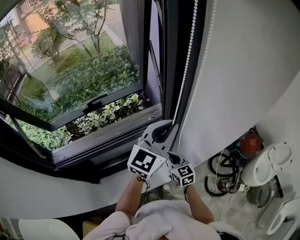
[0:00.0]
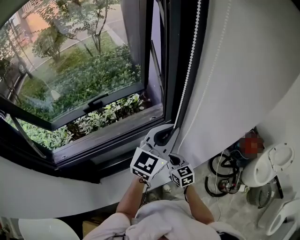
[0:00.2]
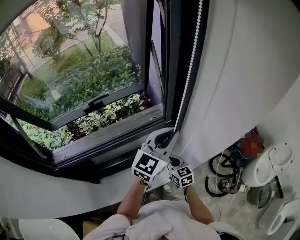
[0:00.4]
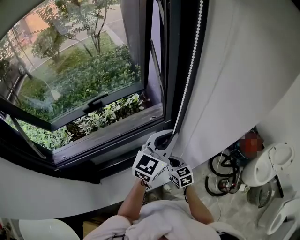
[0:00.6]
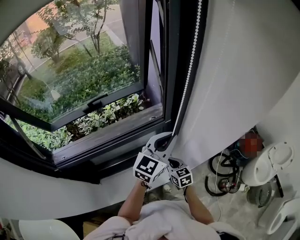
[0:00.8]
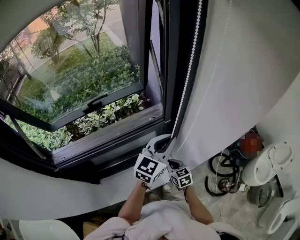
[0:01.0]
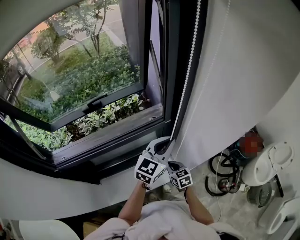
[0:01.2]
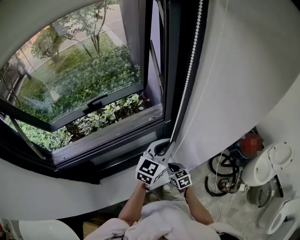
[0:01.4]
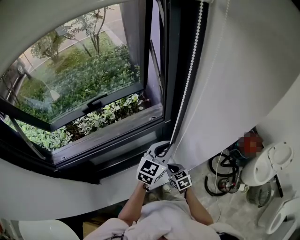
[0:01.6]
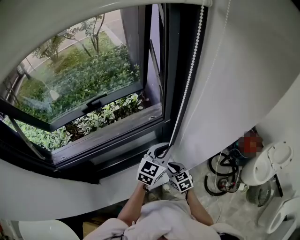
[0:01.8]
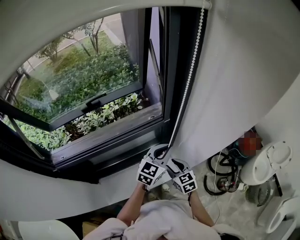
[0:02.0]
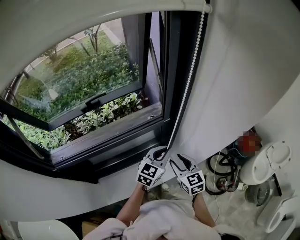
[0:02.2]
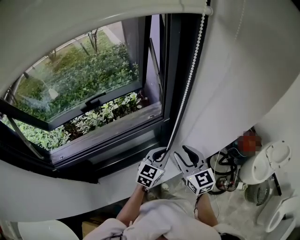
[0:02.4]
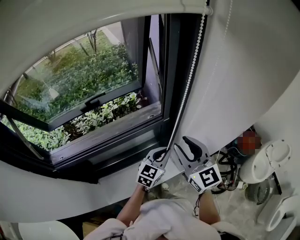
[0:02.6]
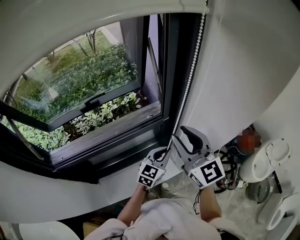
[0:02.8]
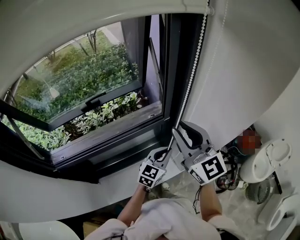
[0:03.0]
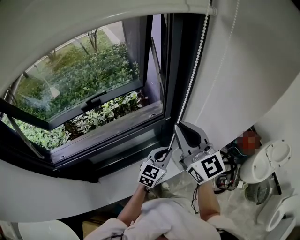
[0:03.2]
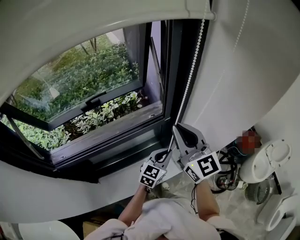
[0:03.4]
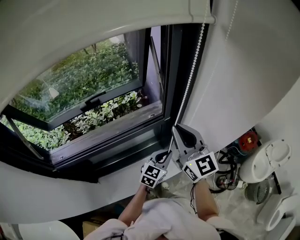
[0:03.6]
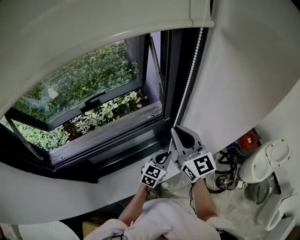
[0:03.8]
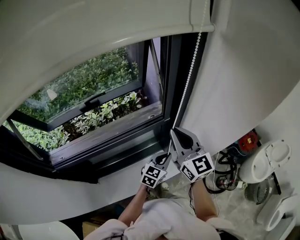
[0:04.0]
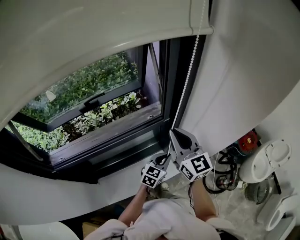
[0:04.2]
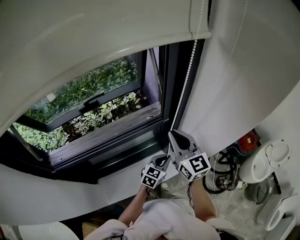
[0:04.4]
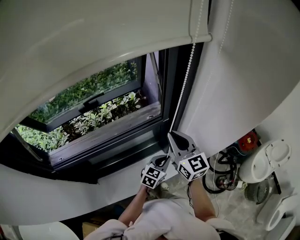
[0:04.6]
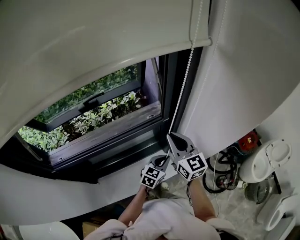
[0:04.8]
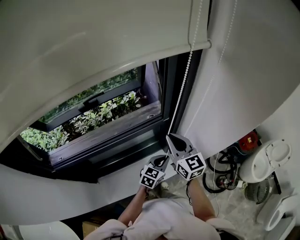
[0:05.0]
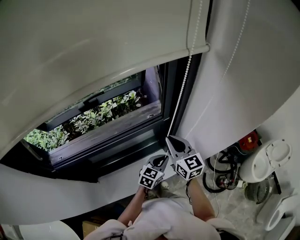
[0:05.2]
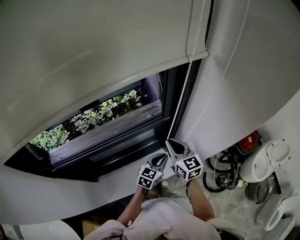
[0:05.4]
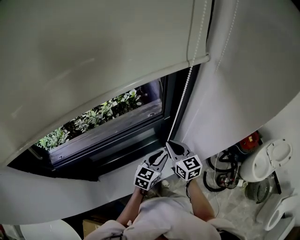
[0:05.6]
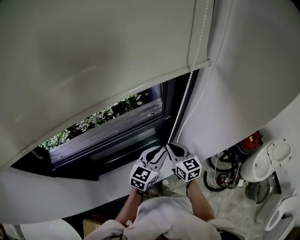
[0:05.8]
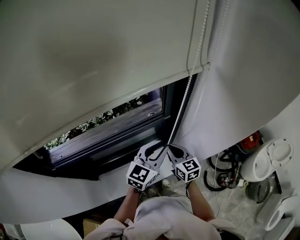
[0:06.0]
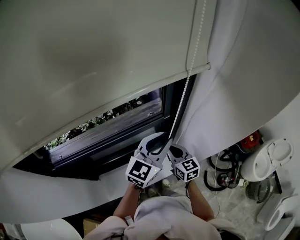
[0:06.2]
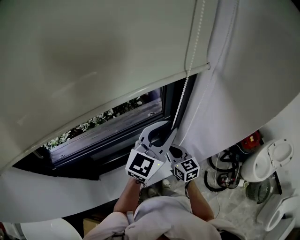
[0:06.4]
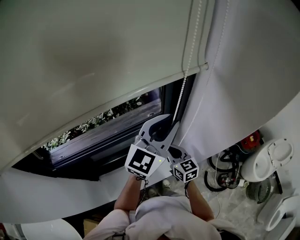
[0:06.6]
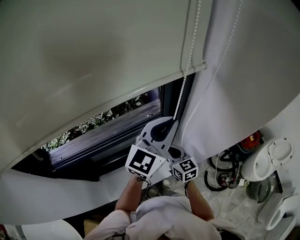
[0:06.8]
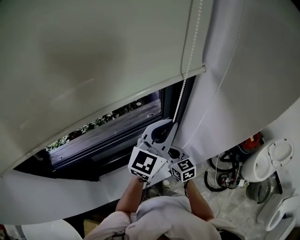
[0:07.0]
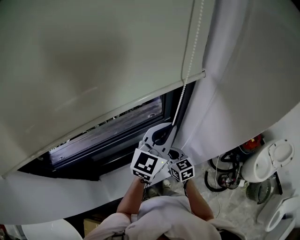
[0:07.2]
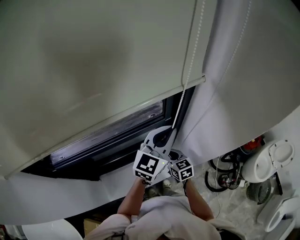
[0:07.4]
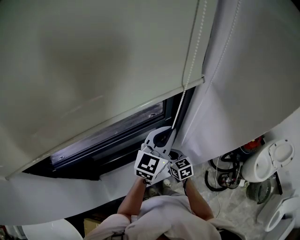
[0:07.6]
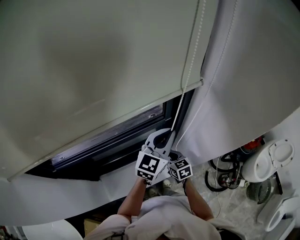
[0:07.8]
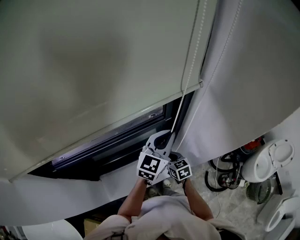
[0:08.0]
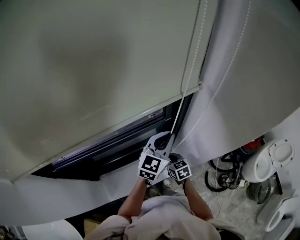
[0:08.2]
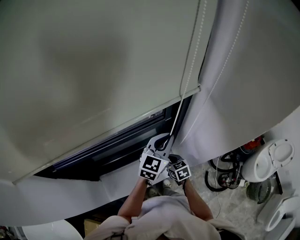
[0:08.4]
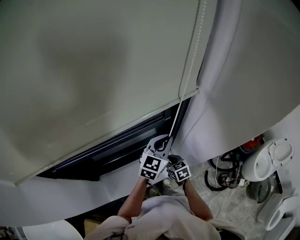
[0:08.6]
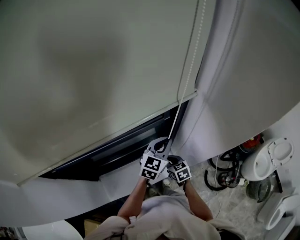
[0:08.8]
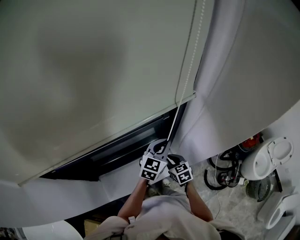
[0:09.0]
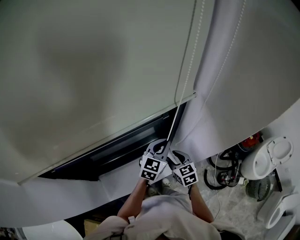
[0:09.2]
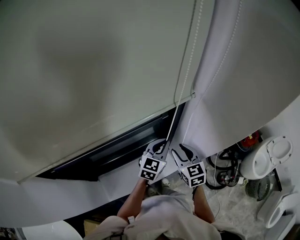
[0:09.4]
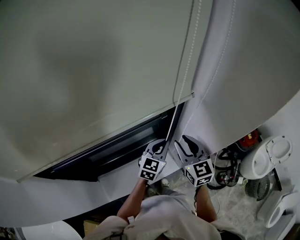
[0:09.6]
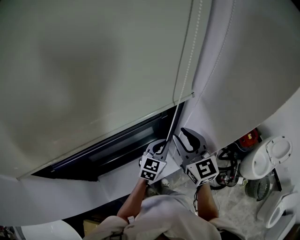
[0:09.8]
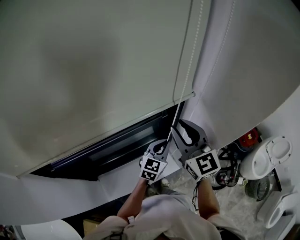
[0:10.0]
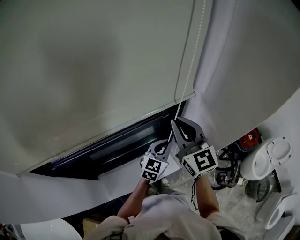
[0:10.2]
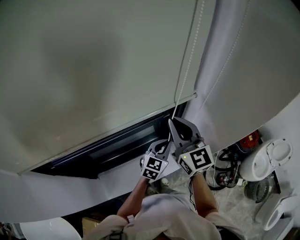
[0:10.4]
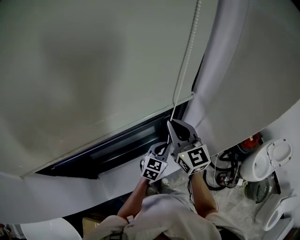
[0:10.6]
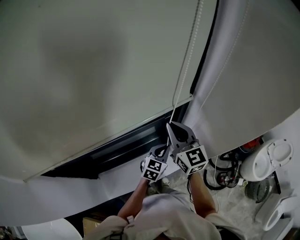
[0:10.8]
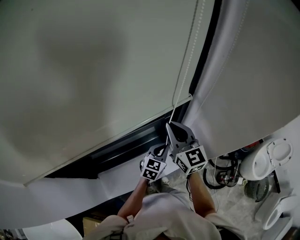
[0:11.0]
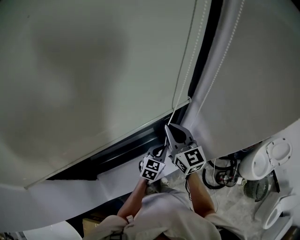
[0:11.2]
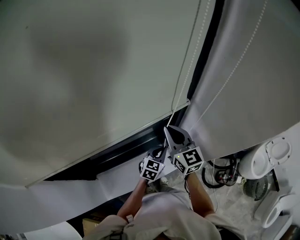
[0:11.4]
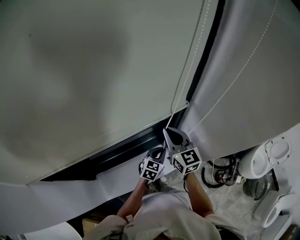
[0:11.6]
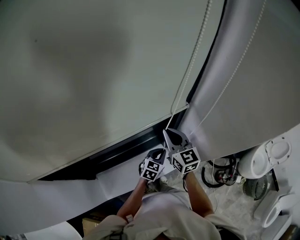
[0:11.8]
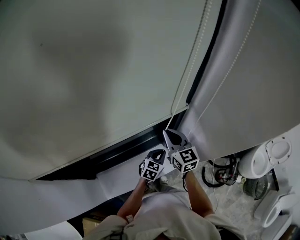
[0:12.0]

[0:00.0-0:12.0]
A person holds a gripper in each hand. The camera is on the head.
0.0 to 1.6 s: The two grippers go roughly 15 cm downward. The right gripper swivels approximately 20 degrees.
1.6 to 3.0 s: The left gripper is displaced downward by about 5 cm. Meanwhile the right gripper heads upward, covering approximately 40 cm, points its fingers roughly 50 degrees further upward, and opens.
3.0 to 4.4 s: The two grippers go some 10 cm downward. The right gripper closes its fingers.
4.4 to 6.0 s: The right gripper travels downward by approximately 15 cm, and turns by approximately 20 degrees, while the left gripper heads upward, covering about 15 cm.
6.0 to 7.6 s: The right gripper heads downward, covering roughly 10 cm. The left gripper is displaced upward and forward by approximately 10 cm.
7.6 to 9.0 s: The right gripper changes place by approximately 5 cm, while the left gripper shifts roughly 15 cm downward.
9.0 to 10.4 s: The right gripper travels upward by some 35 cm, tips its fingers upward by some 40 degrees, and opens, then closes again.
10.4 to 12.0 s: Both grippers move downward, approximately 15 cm.

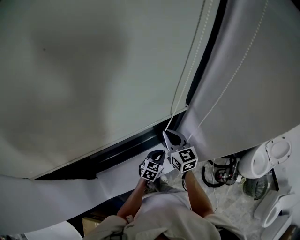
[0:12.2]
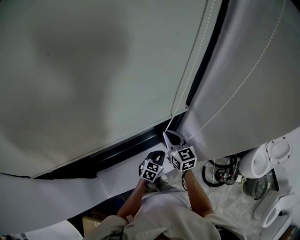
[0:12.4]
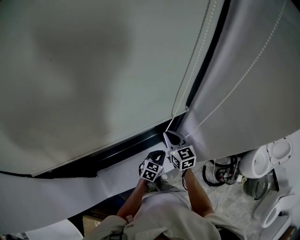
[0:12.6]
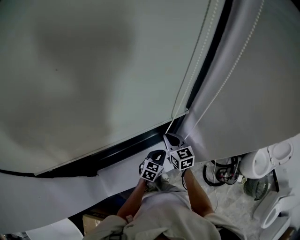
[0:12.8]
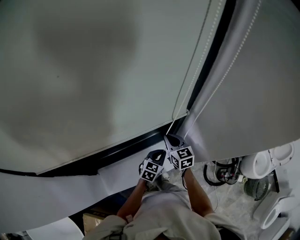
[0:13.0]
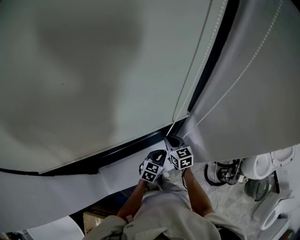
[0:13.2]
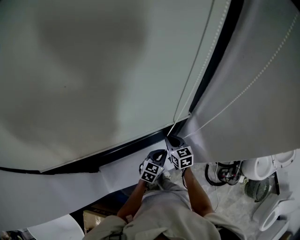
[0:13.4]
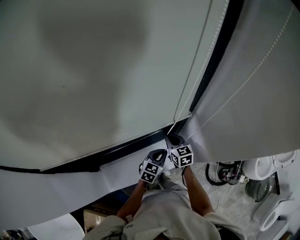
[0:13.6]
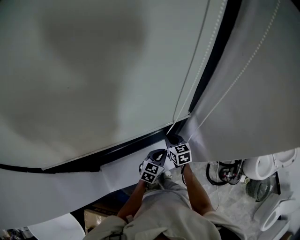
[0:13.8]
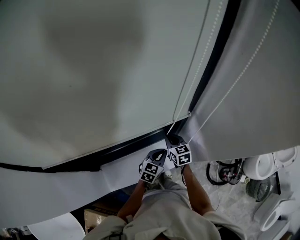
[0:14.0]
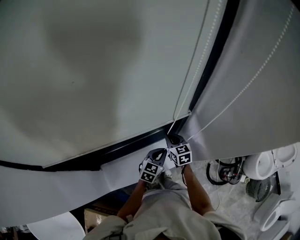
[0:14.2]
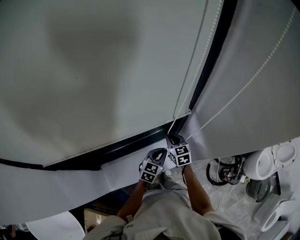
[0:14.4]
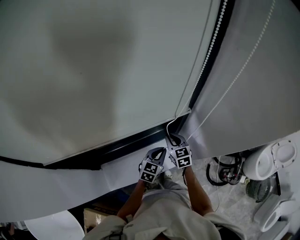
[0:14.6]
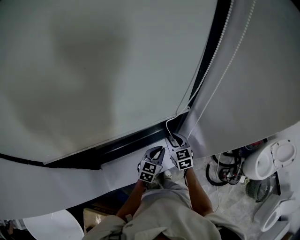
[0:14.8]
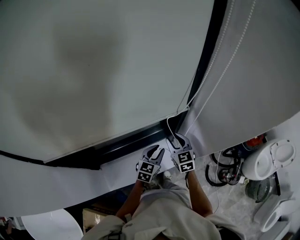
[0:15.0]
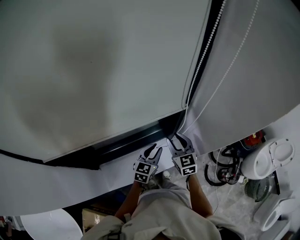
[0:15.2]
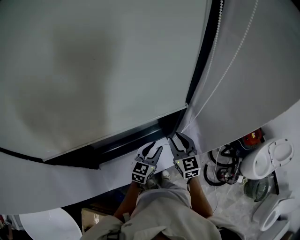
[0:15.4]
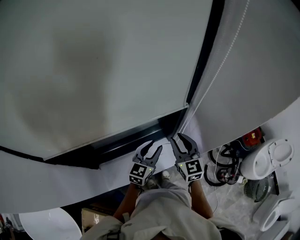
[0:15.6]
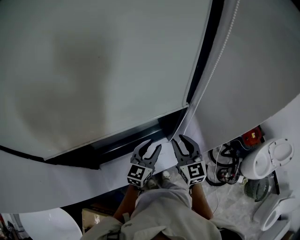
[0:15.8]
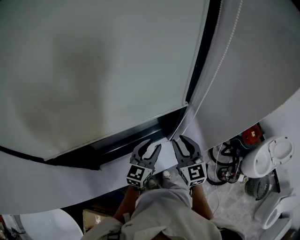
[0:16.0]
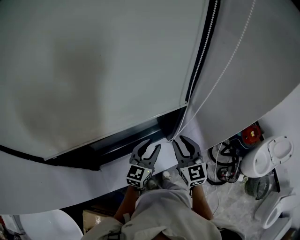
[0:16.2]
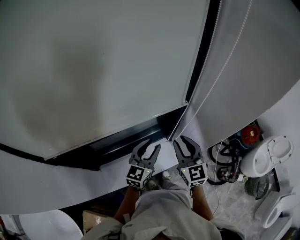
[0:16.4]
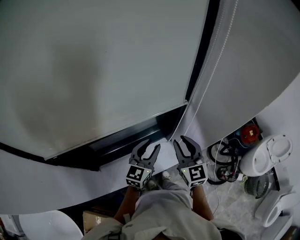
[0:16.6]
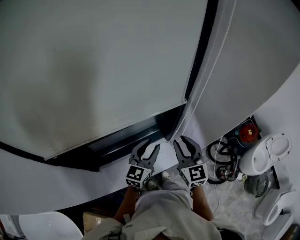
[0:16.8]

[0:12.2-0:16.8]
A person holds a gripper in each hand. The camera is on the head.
12.2 to 13.8 s: The right gripper shifts roughly 15 cm downward.
13.8 to 15.2 s: The left gripper is displaced upward by some 5 cm, and opens up. The right gripper moves upward and backward, approximately 10 cm, and opens.
15.2 to 16.8 s: The left gripper travels upward by approximately 10 cm. The right gripper heads upward and backward, covering approximately 15 cm.

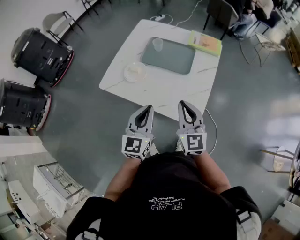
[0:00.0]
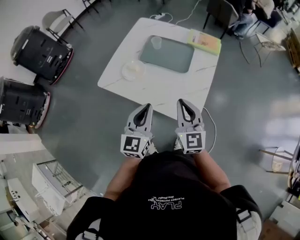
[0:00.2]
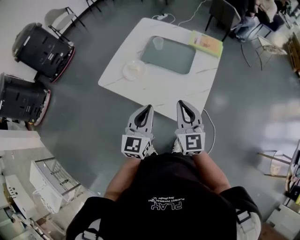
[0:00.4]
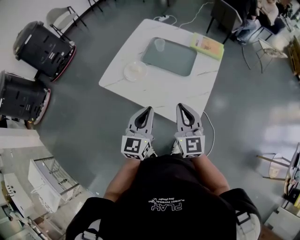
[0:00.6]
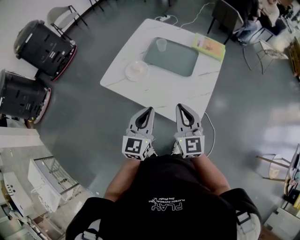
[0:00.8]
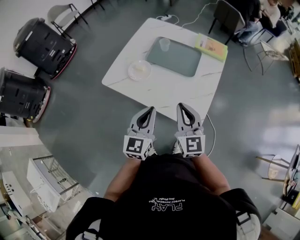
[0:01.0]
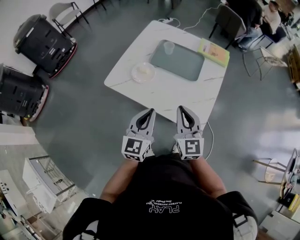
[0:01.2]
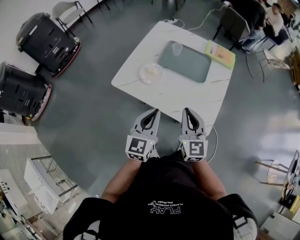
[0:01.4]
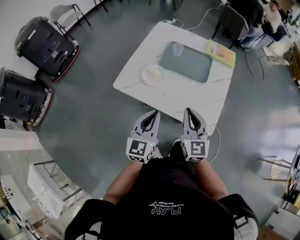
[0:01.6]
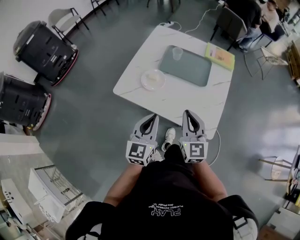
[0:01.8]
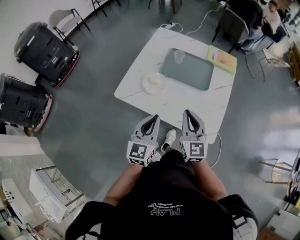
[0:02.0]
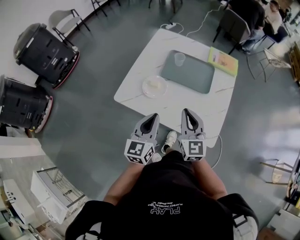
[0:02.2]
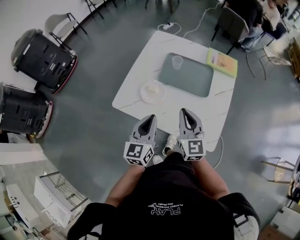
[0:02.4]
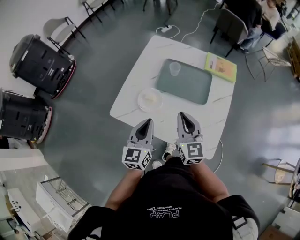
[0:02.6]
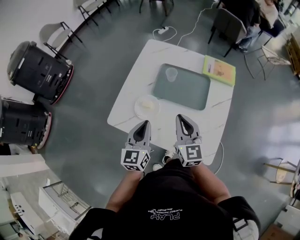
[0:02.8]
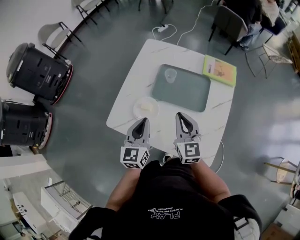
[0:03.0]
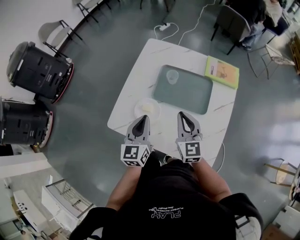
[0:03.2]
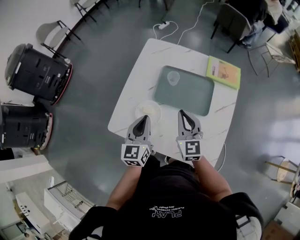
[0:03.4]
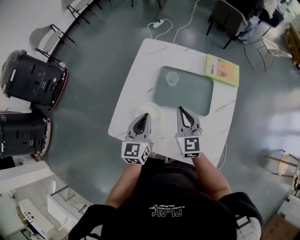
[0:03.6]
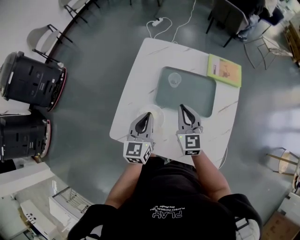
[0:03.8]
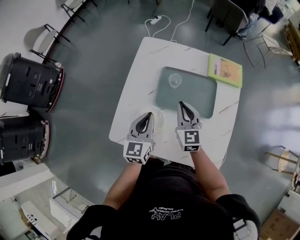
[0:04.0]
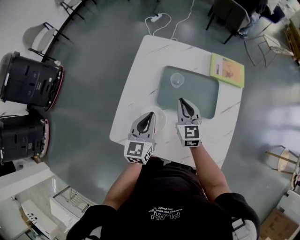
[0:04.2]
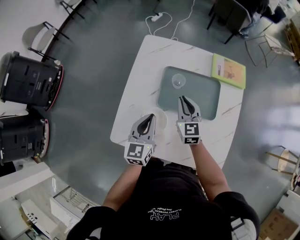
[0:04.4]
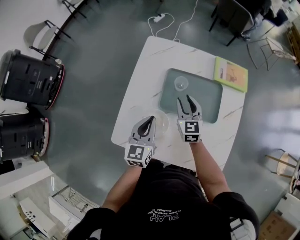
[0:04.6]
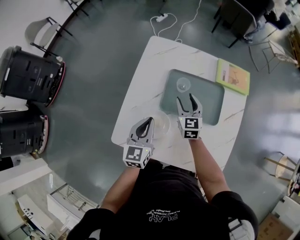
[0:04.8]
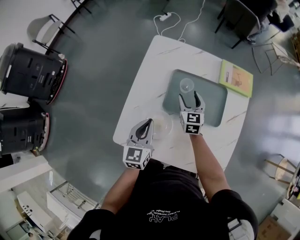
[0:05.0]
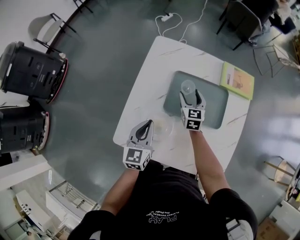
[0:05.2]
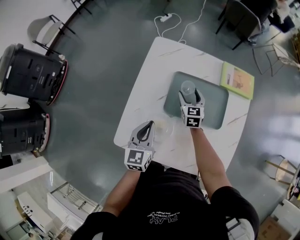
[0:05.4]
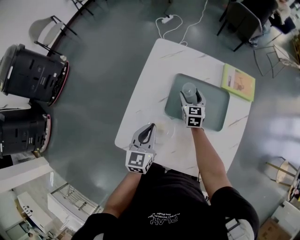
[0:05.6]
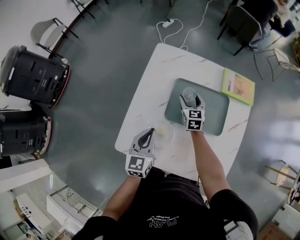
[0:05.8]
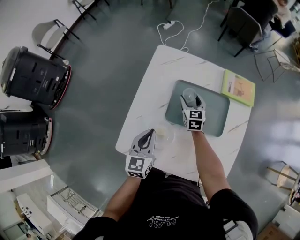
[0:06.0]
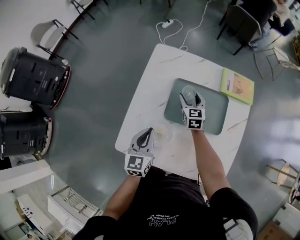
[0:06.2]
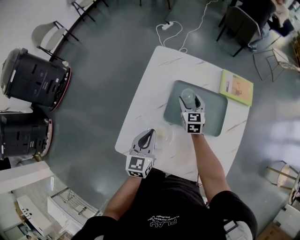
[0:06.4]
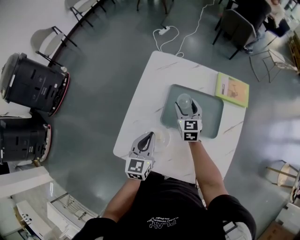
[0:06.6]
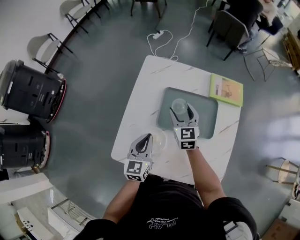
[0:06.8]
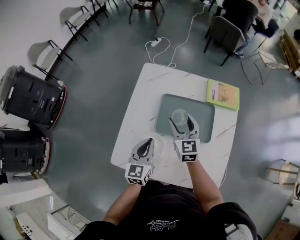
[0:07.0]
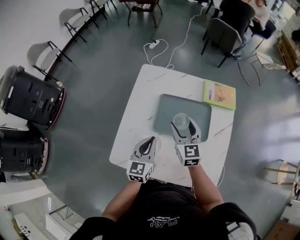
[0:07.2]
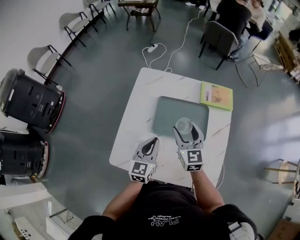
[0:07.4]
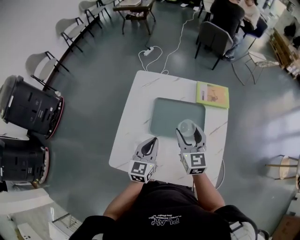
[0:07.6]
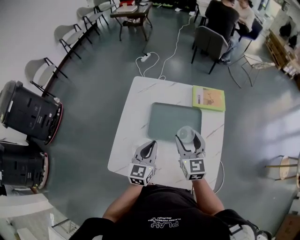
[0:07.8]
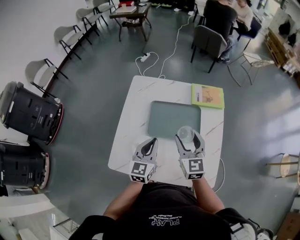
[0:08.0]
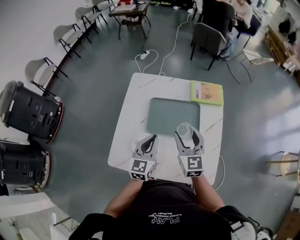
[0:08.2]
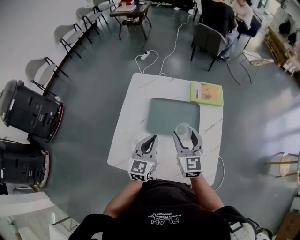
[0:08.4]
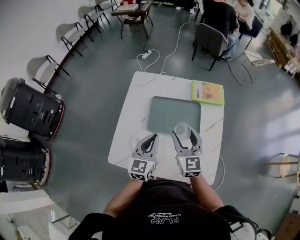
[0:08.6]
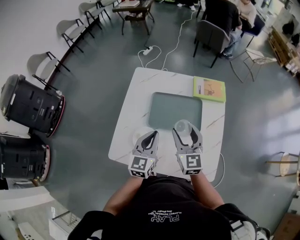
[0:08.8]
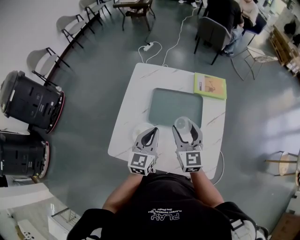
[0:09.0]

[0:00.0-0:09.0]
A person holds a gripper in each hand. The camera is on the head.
0.0 to 1.6 s: Both grippers move to the left, about 10 cm.
1.6 to 3.0 s: Both grippers move forward, approximately 20 cm.
3.0 to 4.4 s: The left gripper heads forward, covering approximately 10 cm. Meanwhile the right gripper shifts some 20 cm forward and downward.
4.4 to 6.0 s: The right gripper is displaced forward and downward by about 15 cm, and opens up.
6.0 to 7.6 s: The right gripper moves upward and backward, some 25 cm, while the left gripper heads to the right, covering some 10 cm.
7.6 to 9.0 s: The right gripper is displaced backward by roughly 5 cm.
